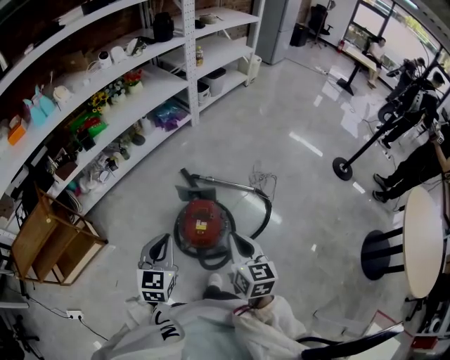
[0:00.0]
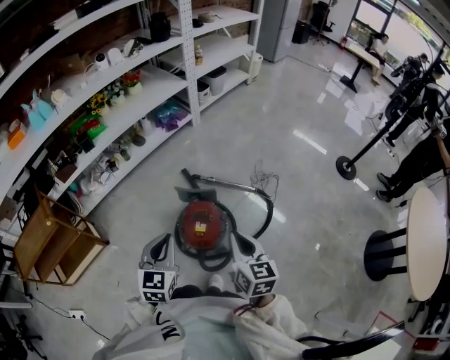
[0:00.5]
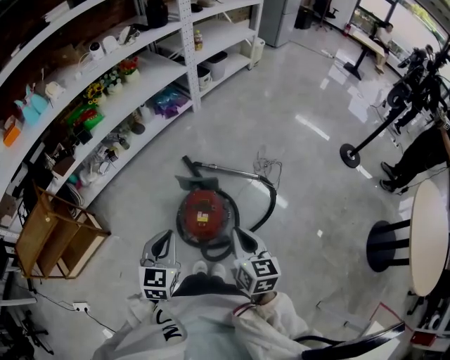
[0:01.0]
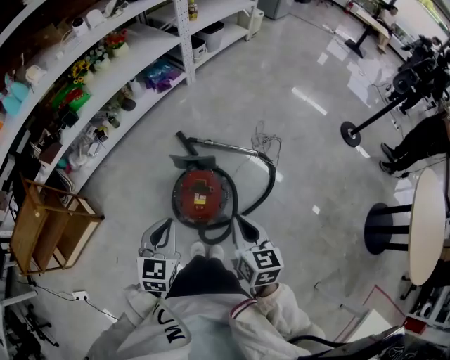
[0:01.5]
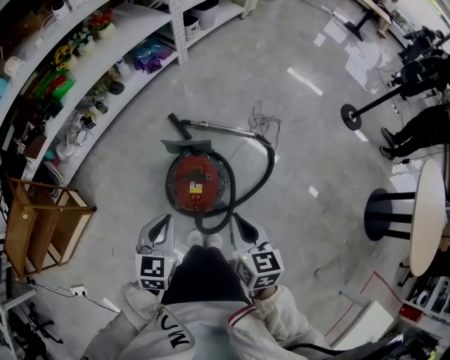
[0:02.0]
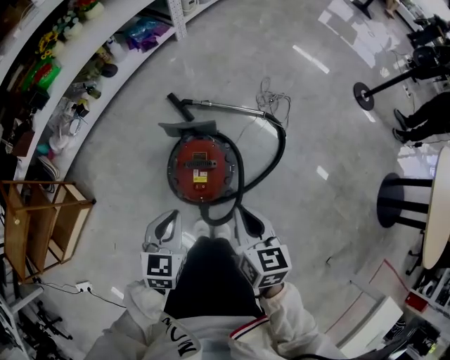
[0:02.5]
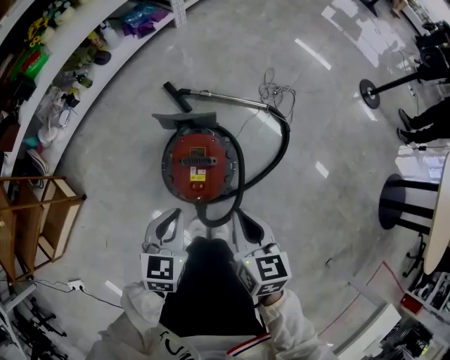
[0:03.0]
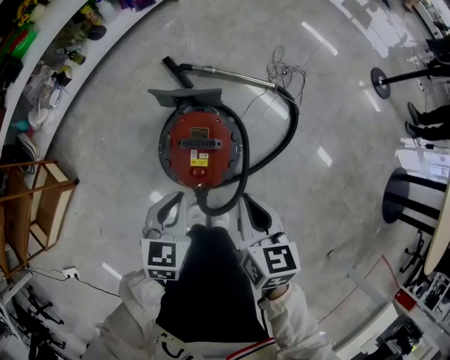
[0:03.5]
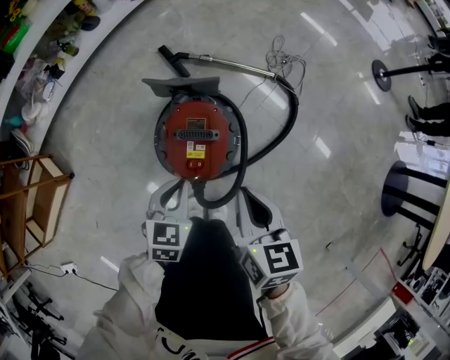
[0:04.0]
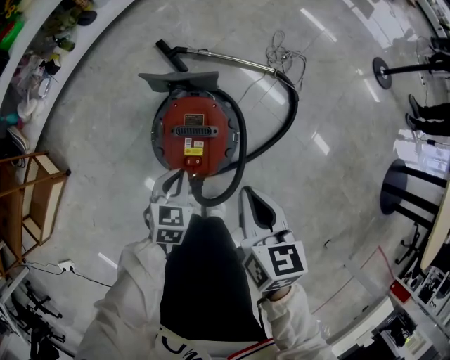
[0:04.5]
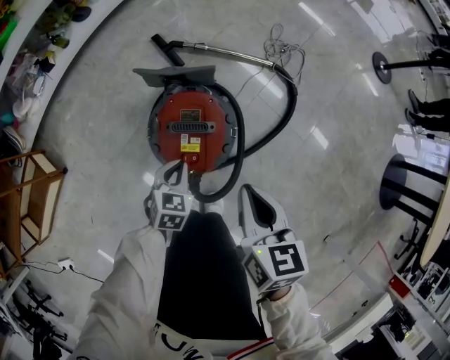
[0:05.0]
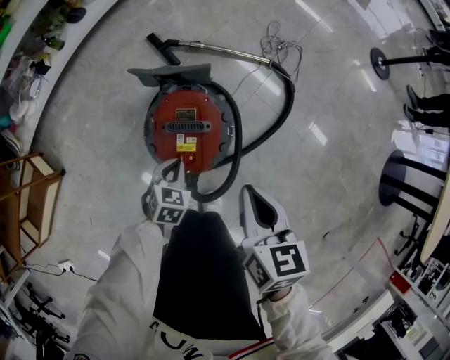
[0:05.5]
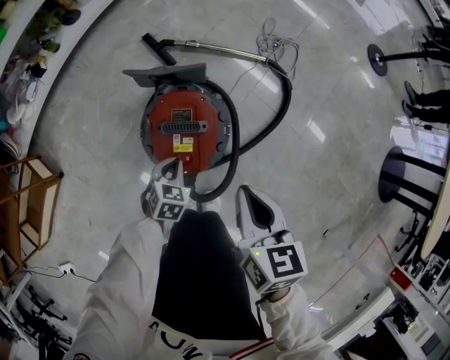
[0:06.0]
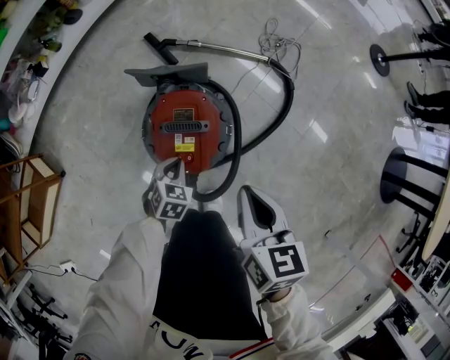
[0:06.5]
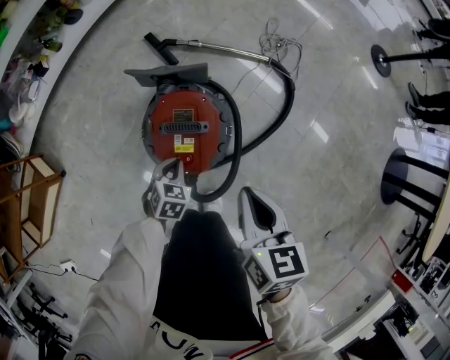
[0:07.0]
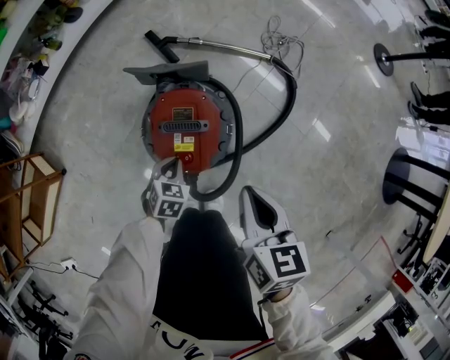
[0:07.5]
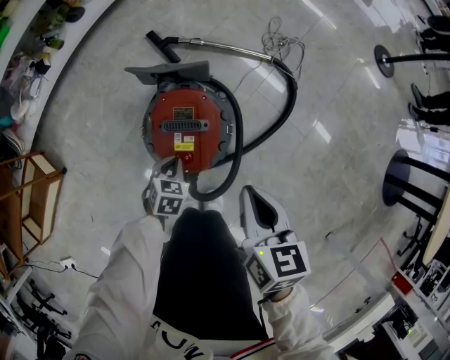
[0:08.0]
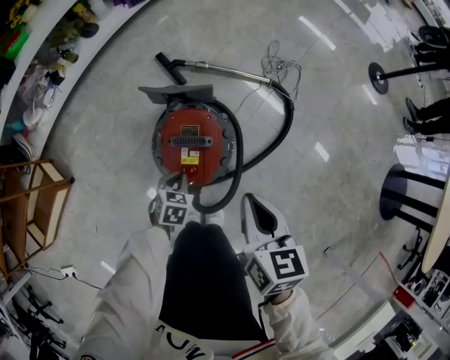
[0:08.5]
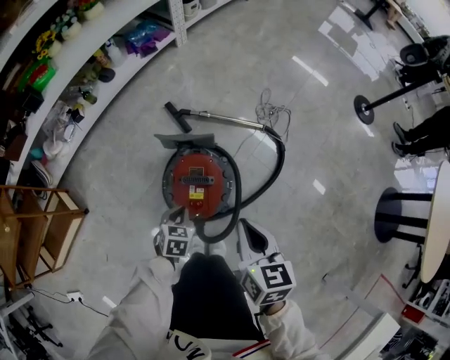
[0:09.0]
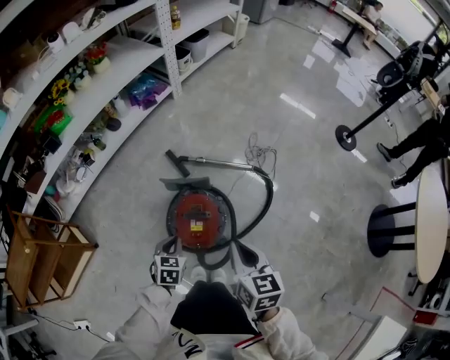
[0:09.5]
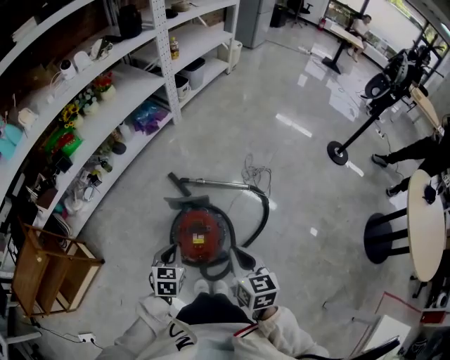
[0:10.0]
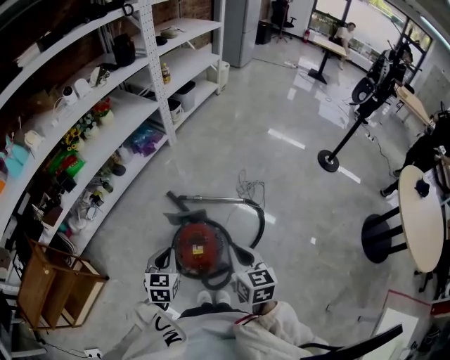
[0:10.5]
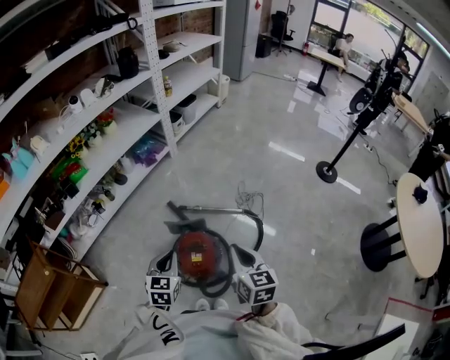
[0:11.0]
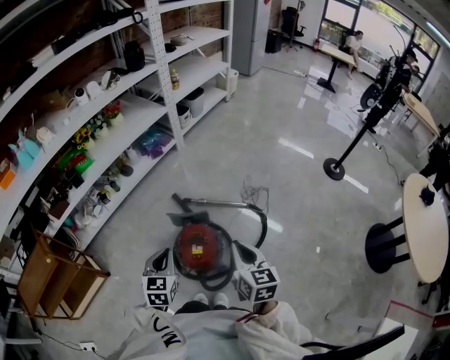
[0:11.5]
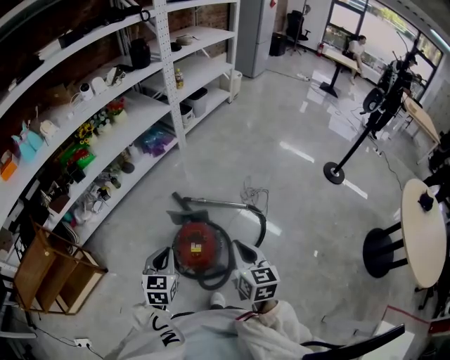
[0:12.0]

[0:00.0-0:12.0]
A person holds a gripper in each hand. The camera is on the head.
0:00.0 to 0:02.0: Both grippers move downward, approximately 10 cm.
0:02.0 to 0:04.0: The right gripper is displaced downward by about 15 cm. Meanwhile the left gripper is displaced downward by roughly 20 cm.
0:04.0 to 0:06.0: The left gripper travels downward by roughly 15 cm.
0:06.0 to 0:08.0: The grippers stay close to where they were, moving slightly.
0:08.0 to 0:10.0: The left gripper moves upward, approximately 30 cm, and turns by approximately 20 degrees. The right gripper goes roughly 20 cm upward.
0:10.0 to 0:12.0: The right gripper is displaced upward by some 5 cm, while the left gripper goes roughly 10 cm upward.

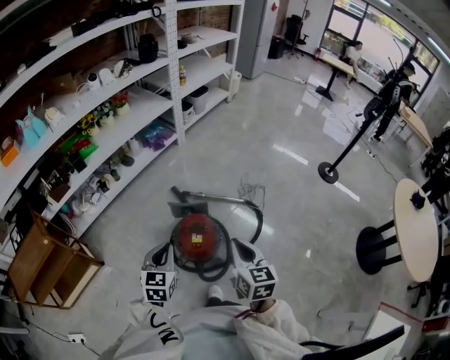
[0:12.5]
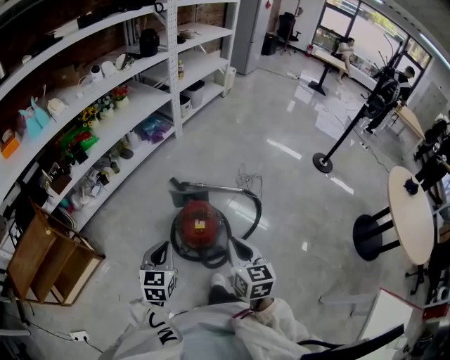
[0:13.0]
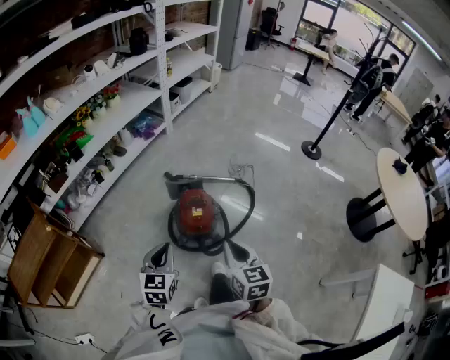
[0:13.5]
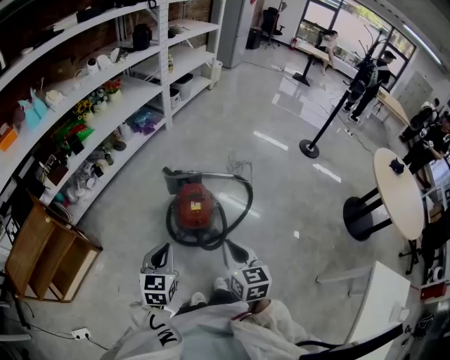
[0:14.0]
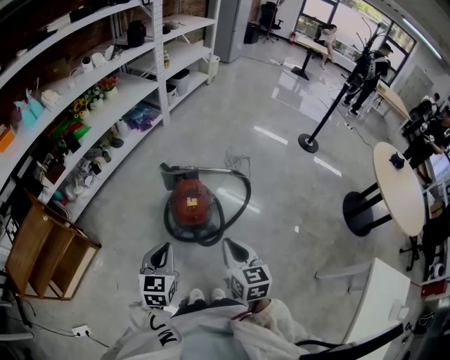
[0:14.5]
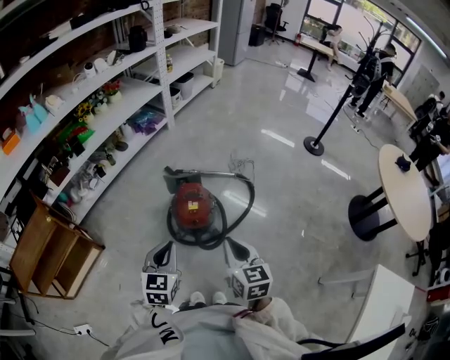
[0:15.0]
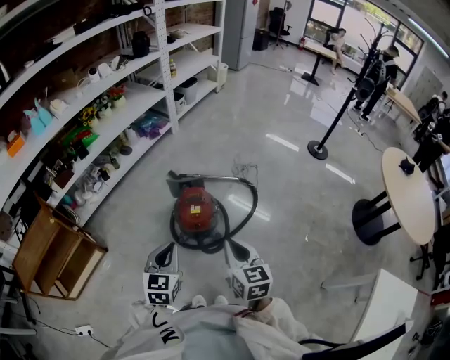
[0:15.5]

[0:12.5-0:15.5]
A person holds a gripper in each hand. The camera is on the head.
0:12.5 to 0:14.0: The left gripper heads backward, covering some 15 cm, while the right gripper shifts approximately 20 cm backward and to the left.
0:14.0 to 0:15.5: The left gripper heads to the right, covering about 5 cm.

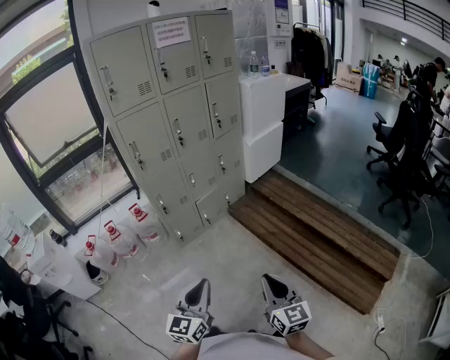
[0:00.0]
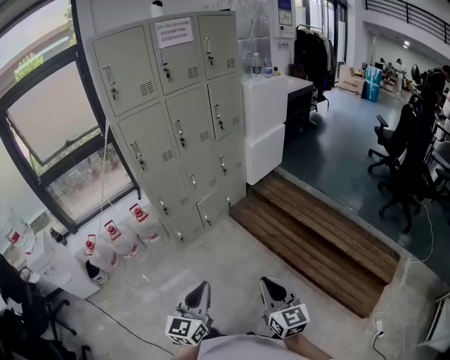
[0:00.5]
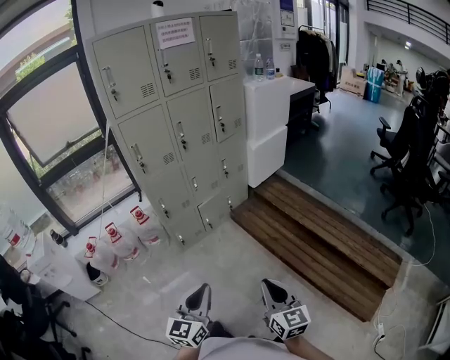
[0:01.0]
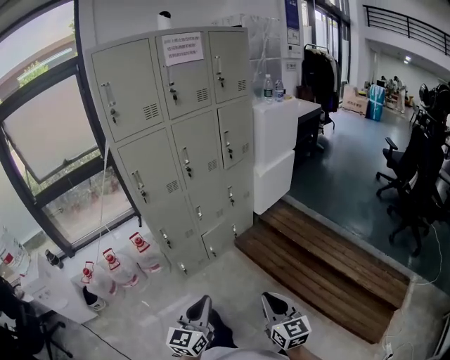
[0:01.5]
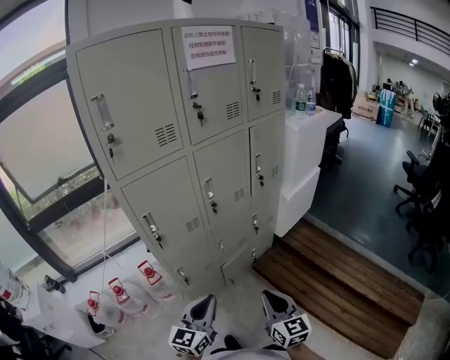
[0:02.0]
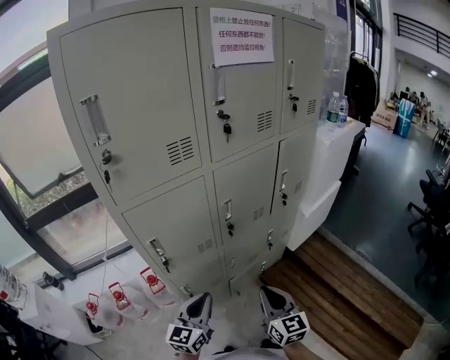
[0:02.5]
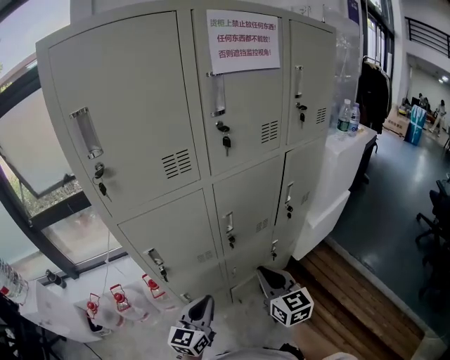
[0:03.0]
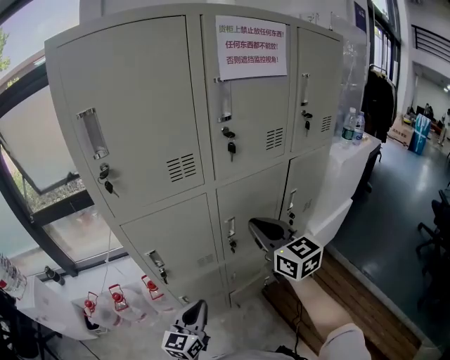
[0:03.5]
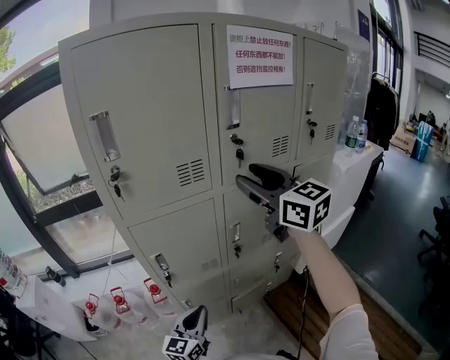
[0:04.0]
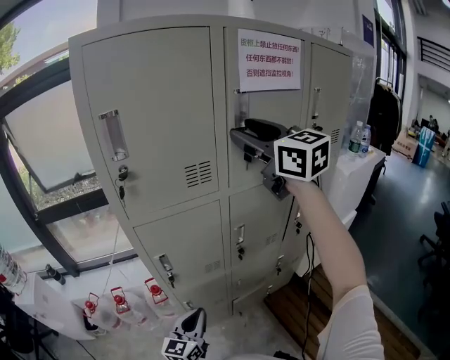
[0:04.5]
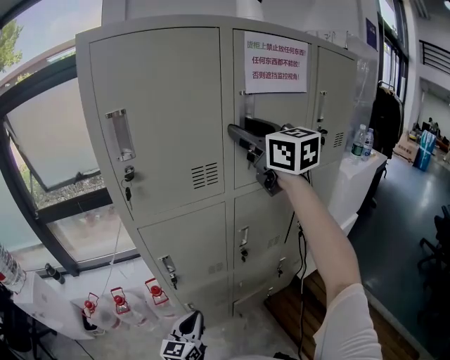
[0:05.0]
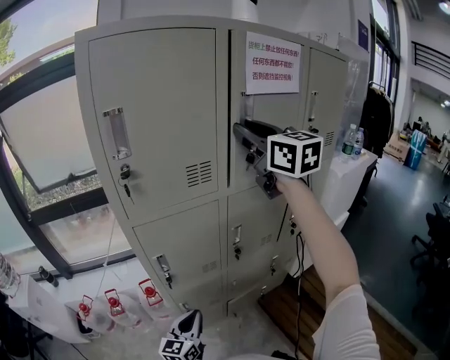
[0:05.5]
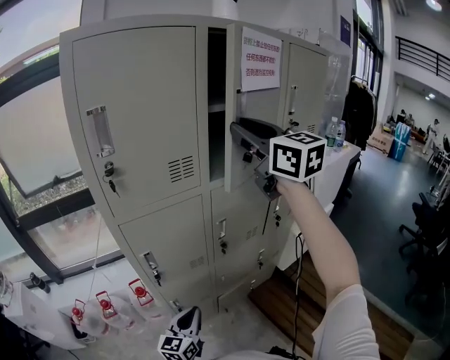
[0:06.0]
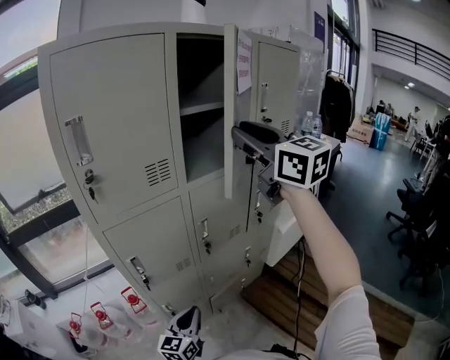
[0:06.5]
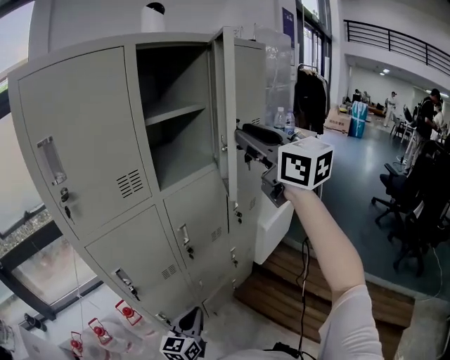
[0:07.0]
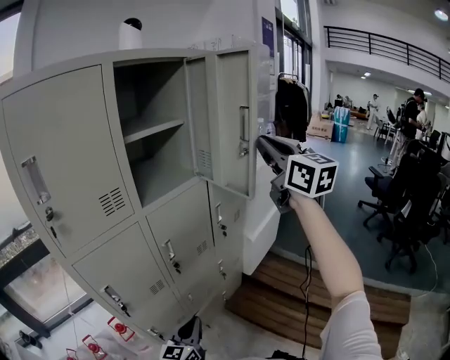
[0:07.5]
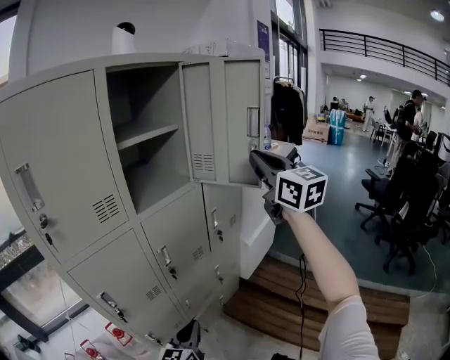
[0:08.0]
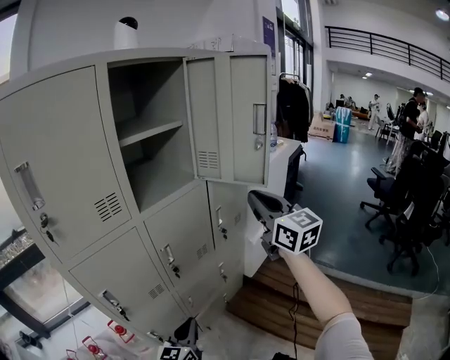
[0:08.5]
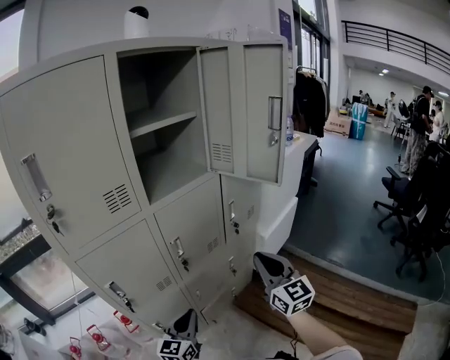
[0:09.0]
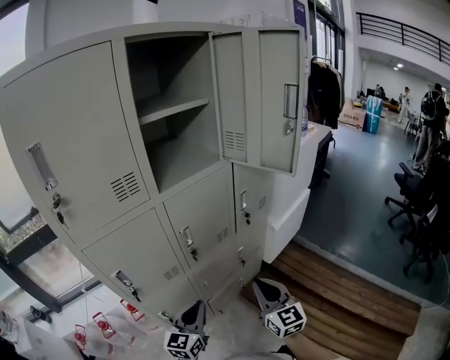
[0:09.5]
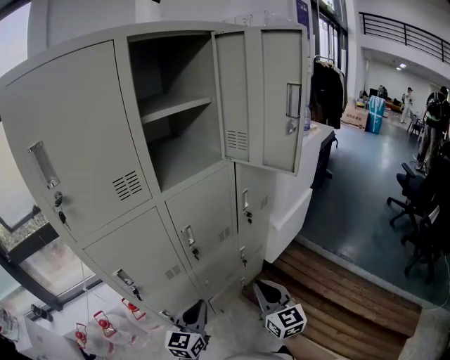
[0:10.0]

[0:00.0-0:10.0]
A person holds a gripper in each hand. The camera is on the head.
0:00.0 to 0:02.0: Both grippers are carried forward and to the left, approximately 50 cm.
0:02.0 to 0:04.0: The right gripper moves forward and upward, approximately 50 cm, rotates some 40 degrees, and opens its fingers. The left gripper heads forward, covering some 20 cm.
0:04.0 to 0:06.0: The right gripper moves upward, some 10 cm.
0:06.0 to 0:08.0: The right gripper shifts some 25 cm to the right, turns by roughly 30 degrees, and closes up. The left gripper goes about 10 cm to the right.
0:08.0 to 0:10.0: The right gripper travels downward by roughly 40 cm.

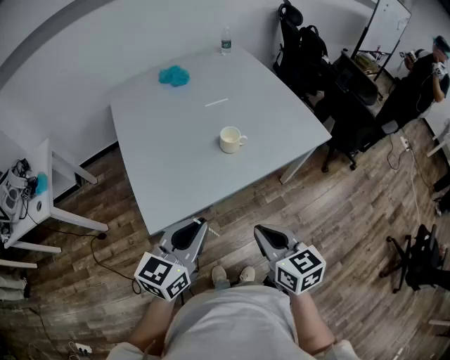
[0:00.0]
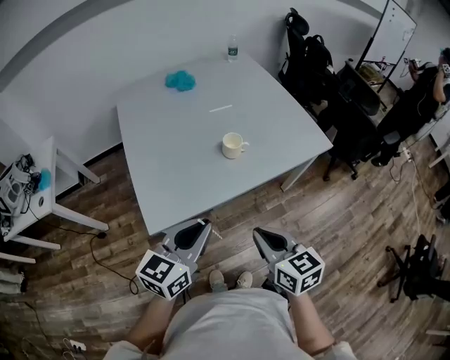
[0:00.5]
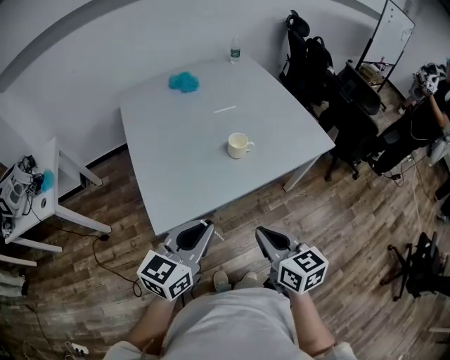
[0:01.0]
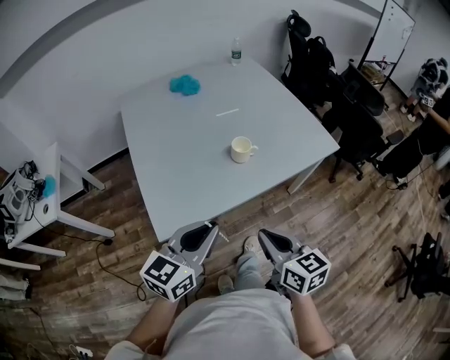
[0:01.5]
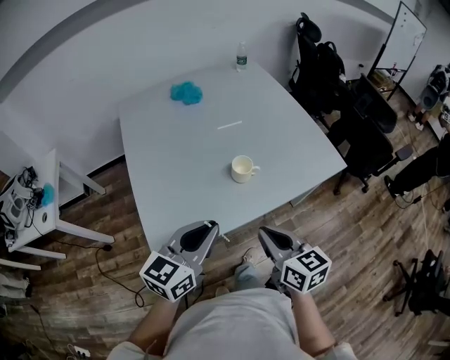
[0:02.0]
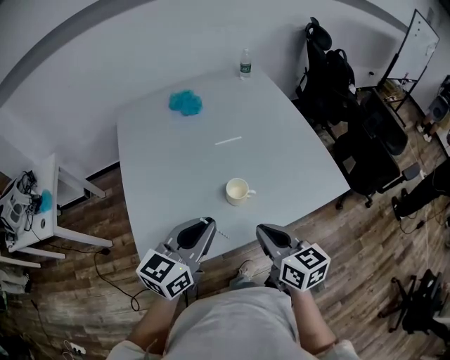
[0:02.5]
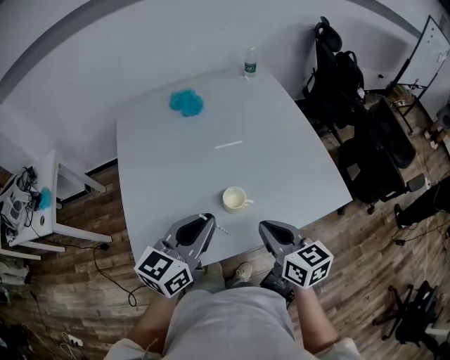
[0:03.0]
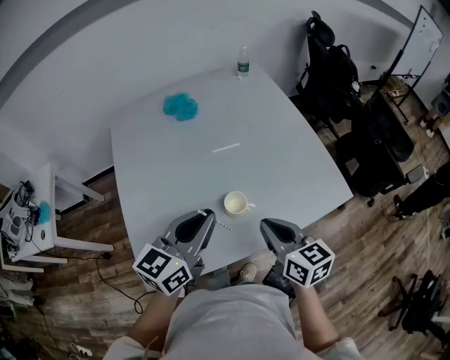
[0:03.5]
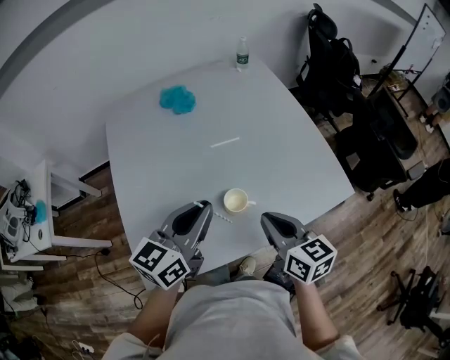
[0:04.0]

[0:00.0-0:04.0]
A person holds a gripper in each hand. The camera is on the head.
0:00.0 to 0:02.0: The grippers both shift forward by roughly 10 cm.
0:02.0 to 0:04.0: Both grippers travel together forward, some 20 cm.
